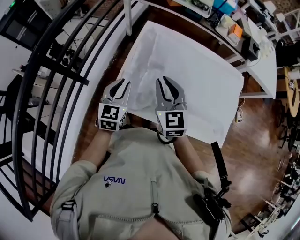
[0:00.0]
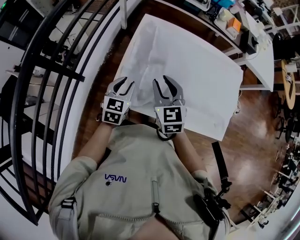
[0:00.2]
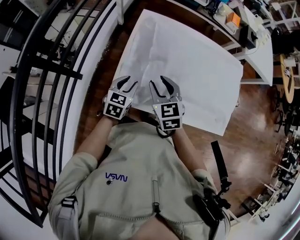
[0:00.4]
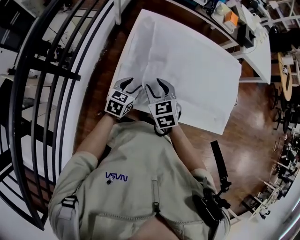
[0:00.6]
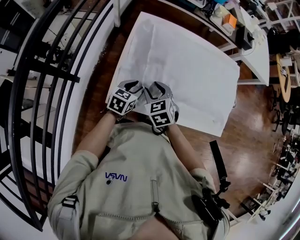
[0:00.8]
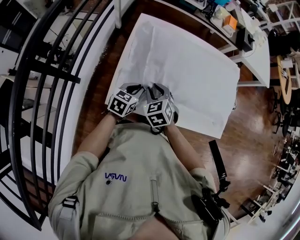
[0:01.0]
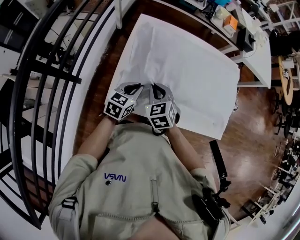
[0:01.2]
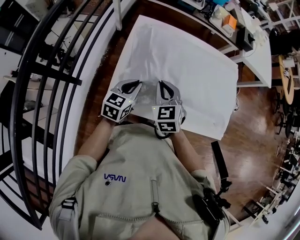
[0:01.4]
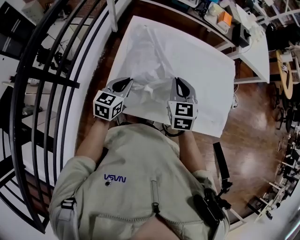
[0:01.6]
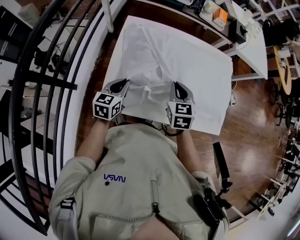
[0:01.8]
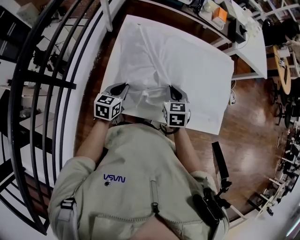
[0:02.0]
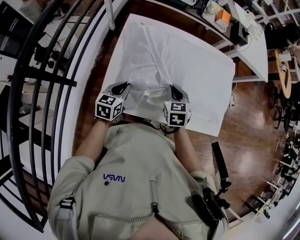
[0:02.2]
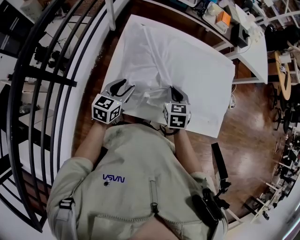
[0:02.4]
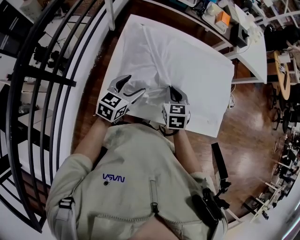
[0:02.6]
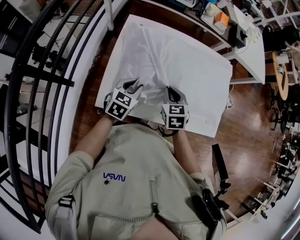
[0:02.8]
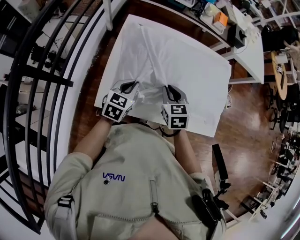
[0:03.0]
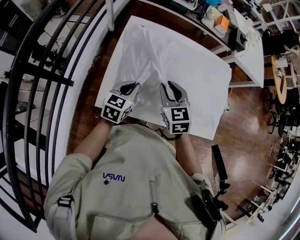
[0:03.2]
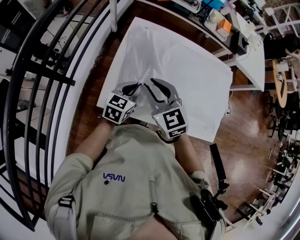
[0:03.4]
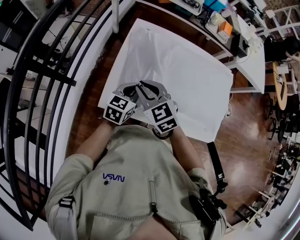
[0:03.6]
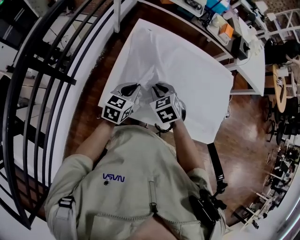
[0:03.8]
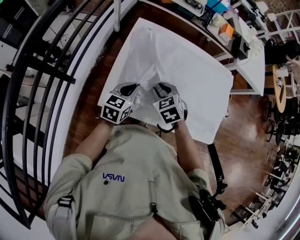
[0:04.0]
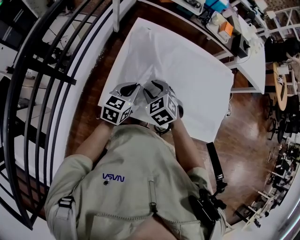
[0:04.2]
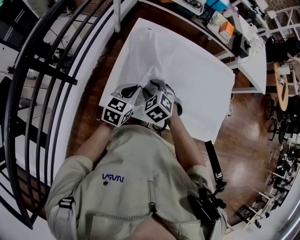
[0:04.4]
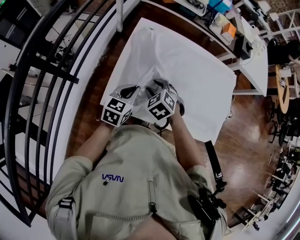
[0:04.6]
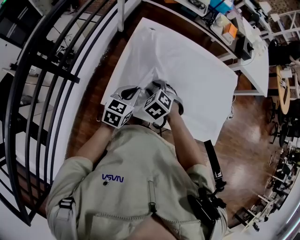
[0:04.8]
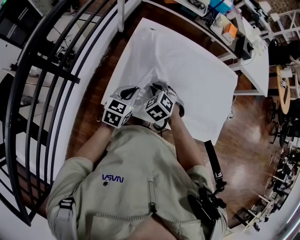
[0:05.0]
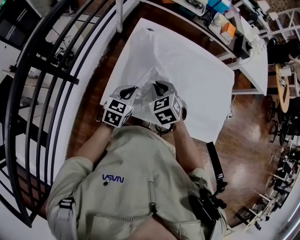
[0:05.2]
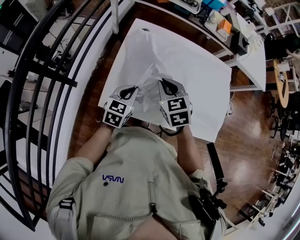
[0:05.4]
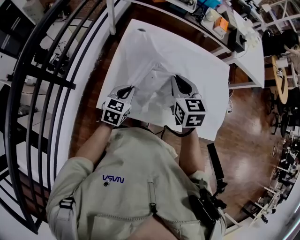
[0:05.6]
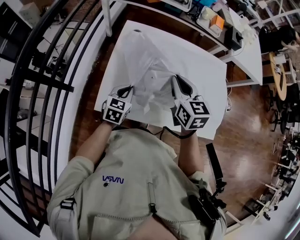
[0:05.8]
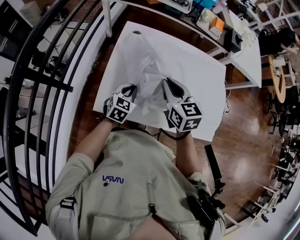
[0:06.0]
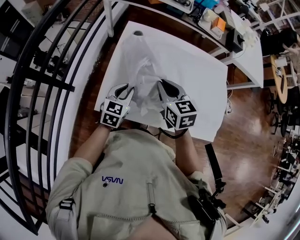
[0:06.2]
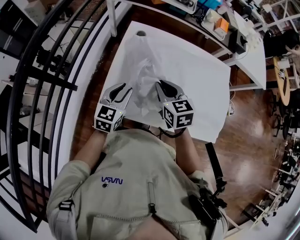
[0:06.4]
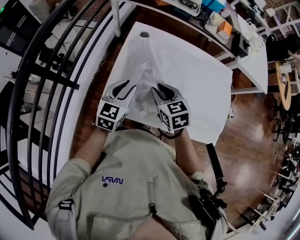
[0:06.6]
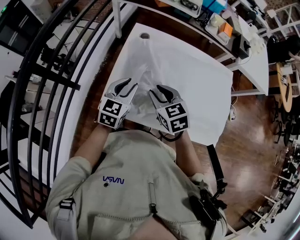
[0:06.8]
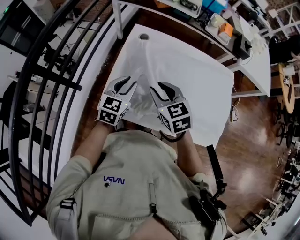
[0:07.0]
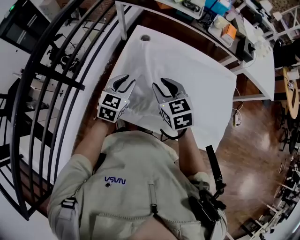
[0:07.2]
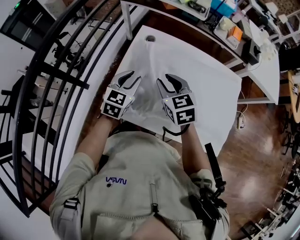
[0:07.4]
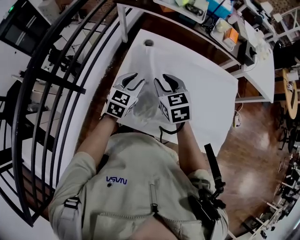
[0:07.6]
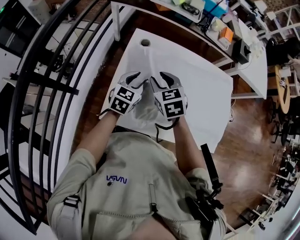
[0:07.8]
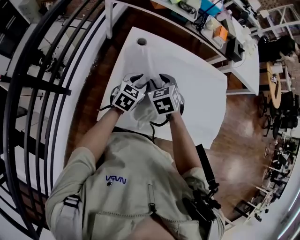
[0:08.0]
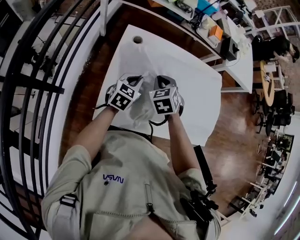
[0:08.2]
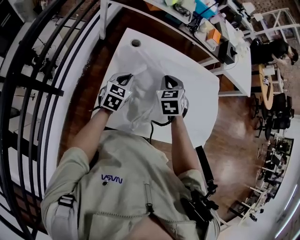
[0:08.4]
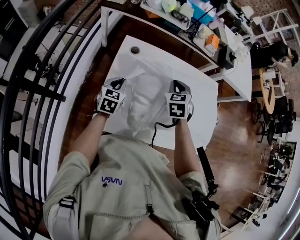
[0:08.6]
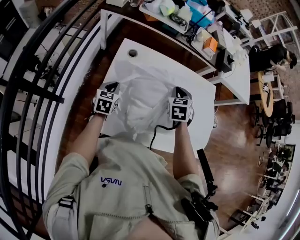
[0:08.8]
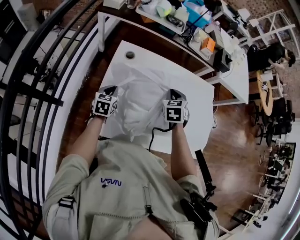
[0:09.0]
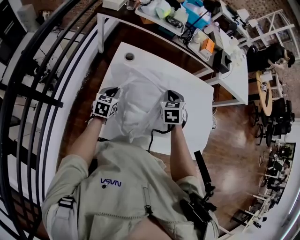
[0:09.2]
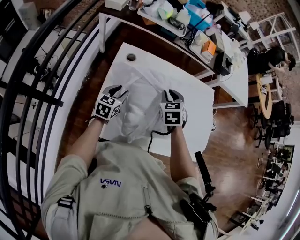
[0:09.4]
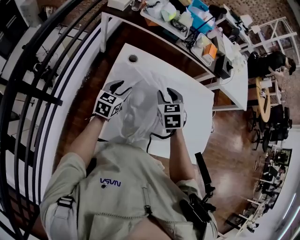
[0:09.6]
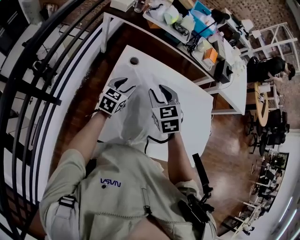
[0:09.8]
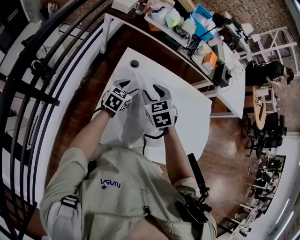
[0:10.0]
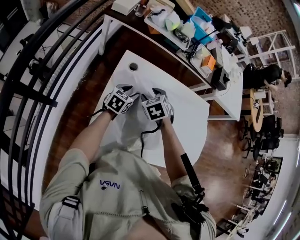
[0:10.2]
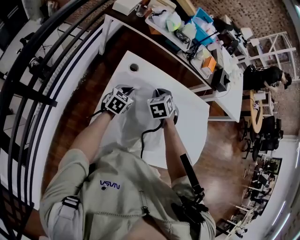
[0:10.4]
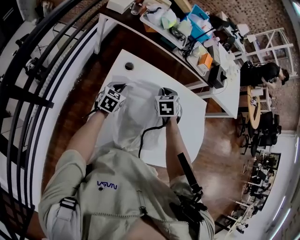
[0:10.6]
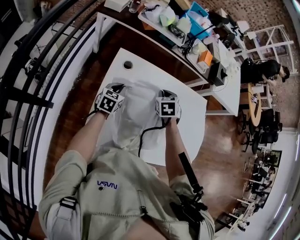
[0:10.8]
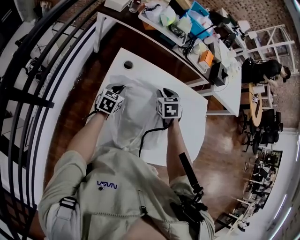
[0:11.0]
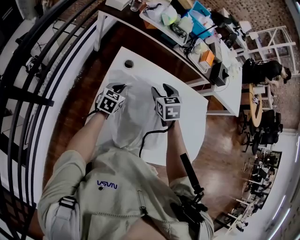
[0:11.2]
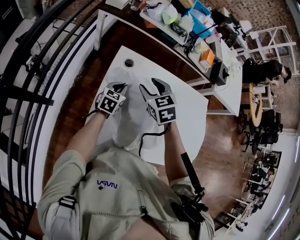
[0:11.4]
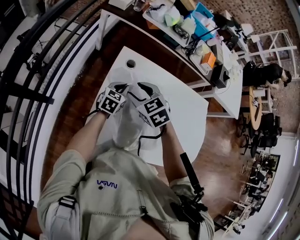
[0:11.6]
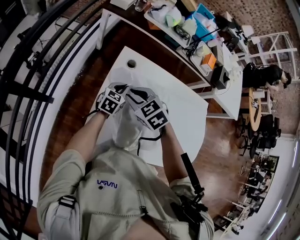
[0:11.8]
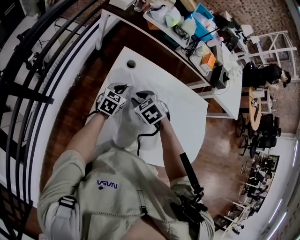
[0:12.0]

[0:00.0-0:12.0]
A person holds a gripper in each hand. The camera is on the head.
0:00.0 to 0:01.6: The left gripper swivels about 20 degrees, and opens, then closes once more. Meanwhile the right gripper moves to the right, some 10 cm, goes downward and returns, approximately 15 cm each way, rotates approximately 20 degrees, and opens, then closes once more.
0:01.6 to 0:03.0: The left gripper goes some 5 cm to the right, and opens, then closes again, while the right gripper goes approximately 5 cm downward.
0:03.0 to 0:04.4: The right gripper moves left and right over about 15 cm, changing direction 2 times, turns by some 40 degrees, and opens up.
0:04.4 to 0:06.0: The right gripper is displaced upward and to the right by roughly 15 cm, tips its fingers upward by roughly 30 degrees, and closes its fingers, while the left gripper moves about 5 cm.
0:06.0 to 0:07.6: The left gripper shifts roughly 10 cm upward and forward, and opens its fingers. Meanwhile the right gripper is displaced forward and to the left by some 10 cm, and opens its fingers.
0:07.6 to 0:09.0: The right gripper moves to the right and forward, about 15 cm, turns by roughly 30 degrees, and closes, while the left gripper is displaced downward and to the left by roughly 10 cm.
0:09.0 to 0:10.4: The right gripper is displaced to the left by some 10 cm, and opens, then closes once more. The left gripper moves forward, about 10 cm, and opens, then closes again.
0:10.4 to 0:12.0: The right gripper moves about 5 cm upward and comes back, changes its angle by about 30 degrees, and opens up.

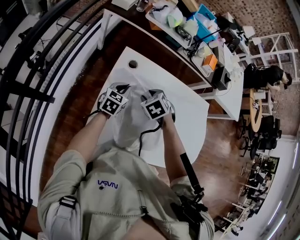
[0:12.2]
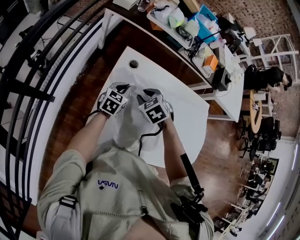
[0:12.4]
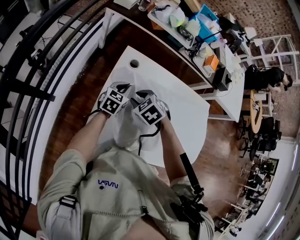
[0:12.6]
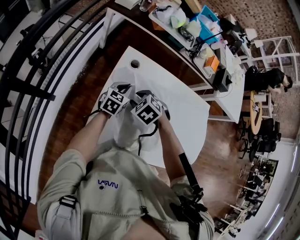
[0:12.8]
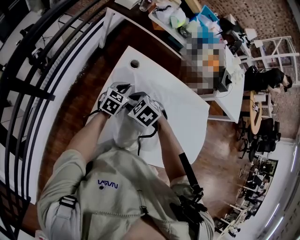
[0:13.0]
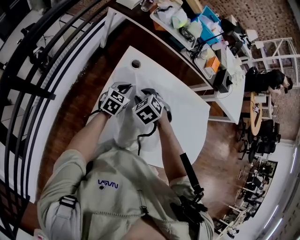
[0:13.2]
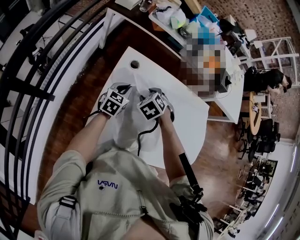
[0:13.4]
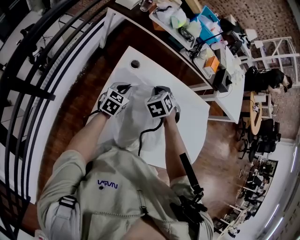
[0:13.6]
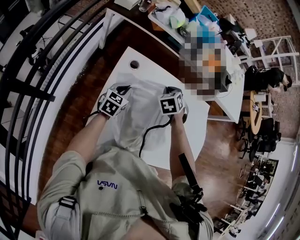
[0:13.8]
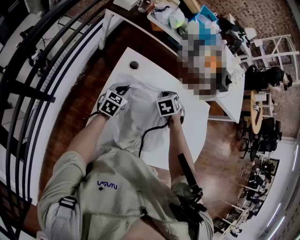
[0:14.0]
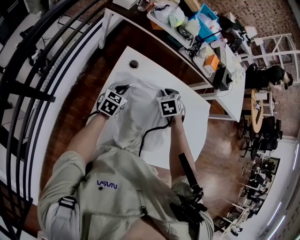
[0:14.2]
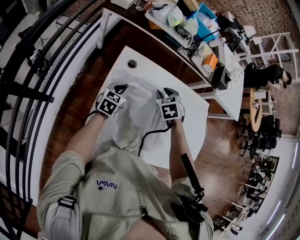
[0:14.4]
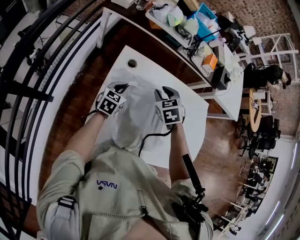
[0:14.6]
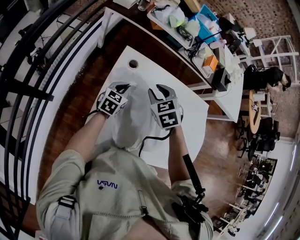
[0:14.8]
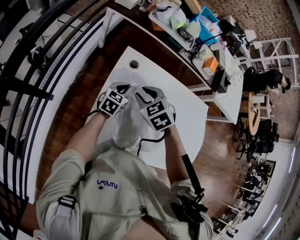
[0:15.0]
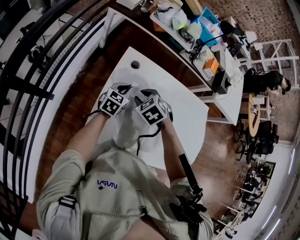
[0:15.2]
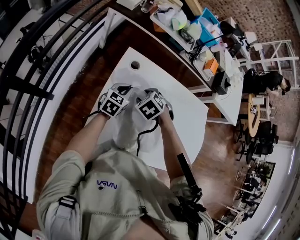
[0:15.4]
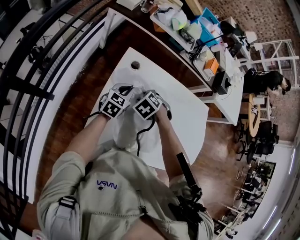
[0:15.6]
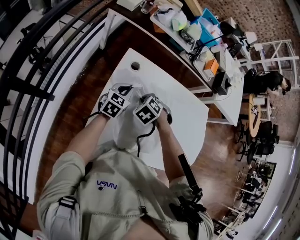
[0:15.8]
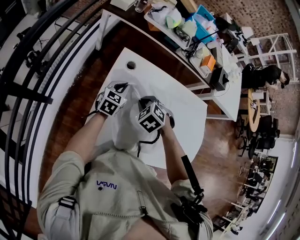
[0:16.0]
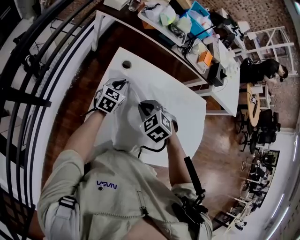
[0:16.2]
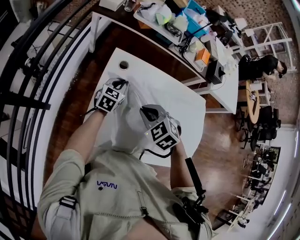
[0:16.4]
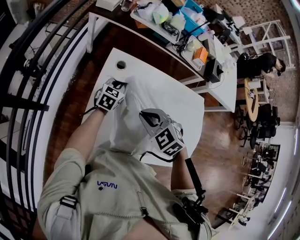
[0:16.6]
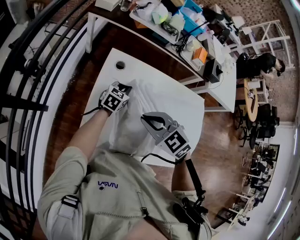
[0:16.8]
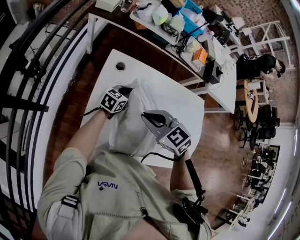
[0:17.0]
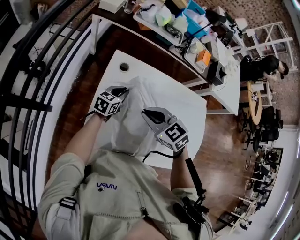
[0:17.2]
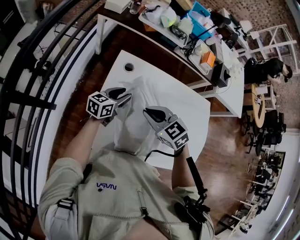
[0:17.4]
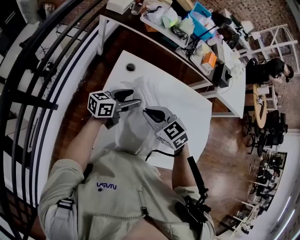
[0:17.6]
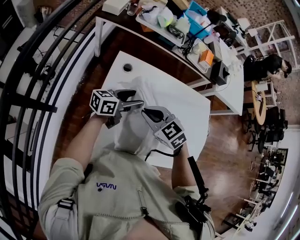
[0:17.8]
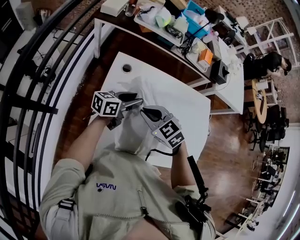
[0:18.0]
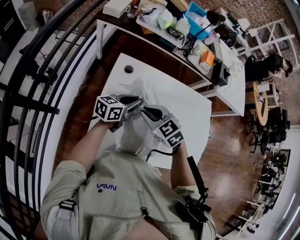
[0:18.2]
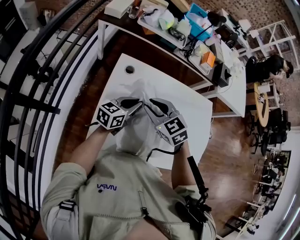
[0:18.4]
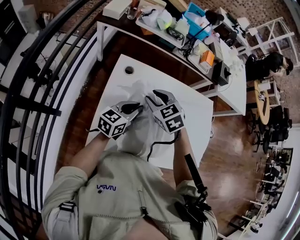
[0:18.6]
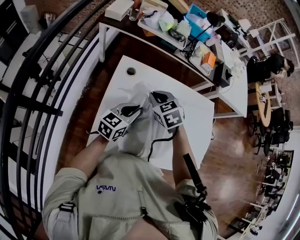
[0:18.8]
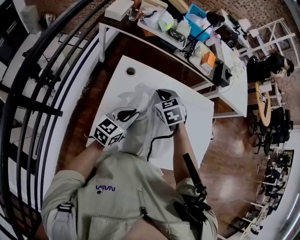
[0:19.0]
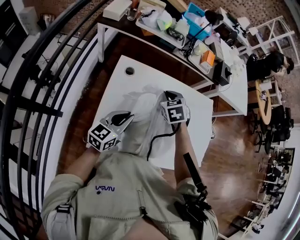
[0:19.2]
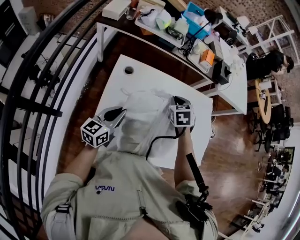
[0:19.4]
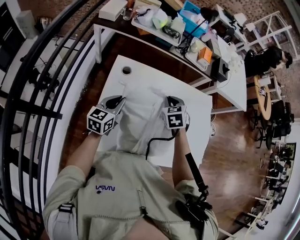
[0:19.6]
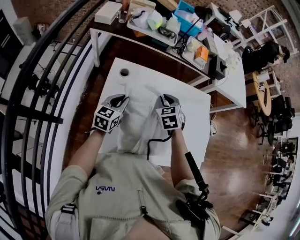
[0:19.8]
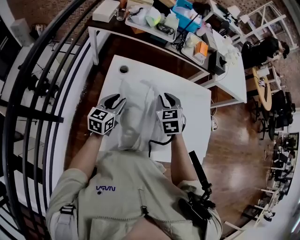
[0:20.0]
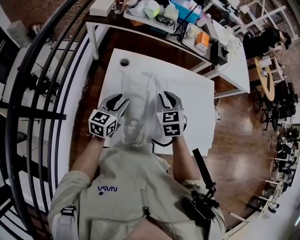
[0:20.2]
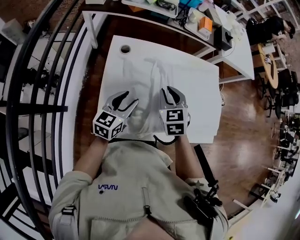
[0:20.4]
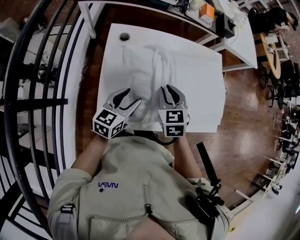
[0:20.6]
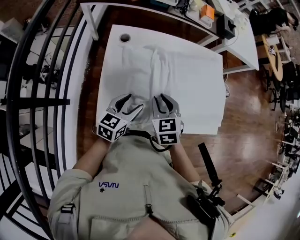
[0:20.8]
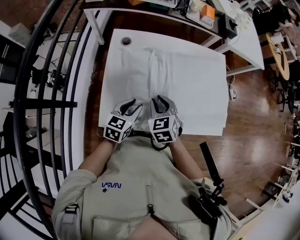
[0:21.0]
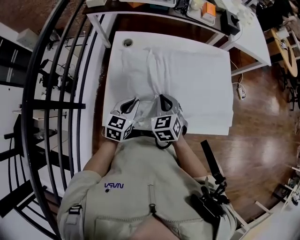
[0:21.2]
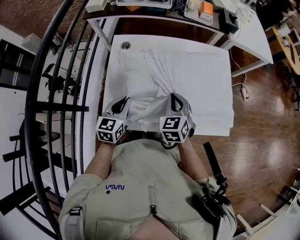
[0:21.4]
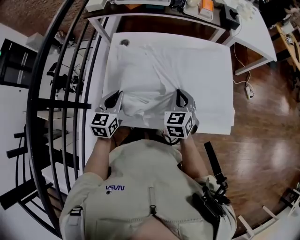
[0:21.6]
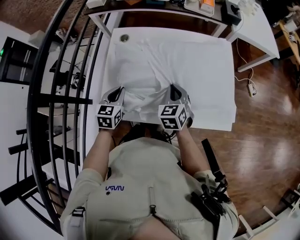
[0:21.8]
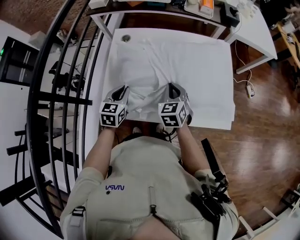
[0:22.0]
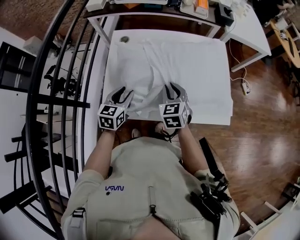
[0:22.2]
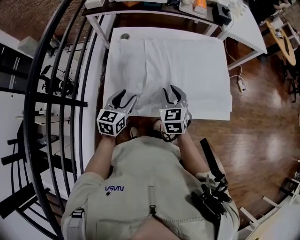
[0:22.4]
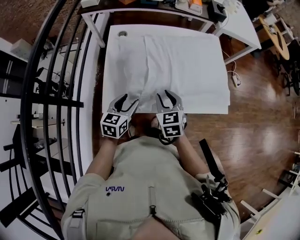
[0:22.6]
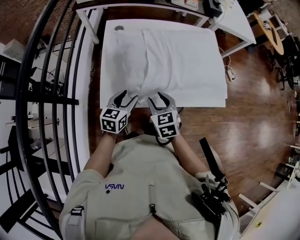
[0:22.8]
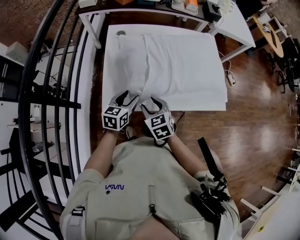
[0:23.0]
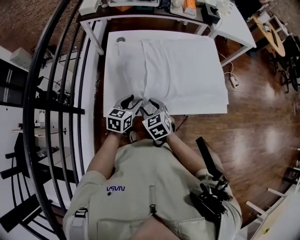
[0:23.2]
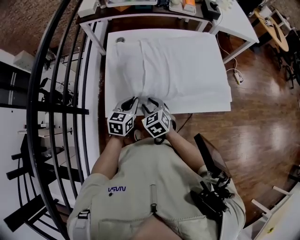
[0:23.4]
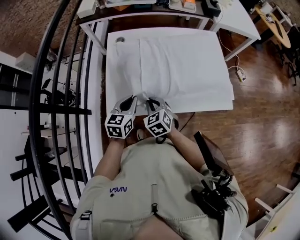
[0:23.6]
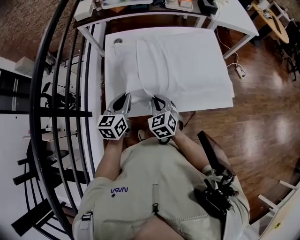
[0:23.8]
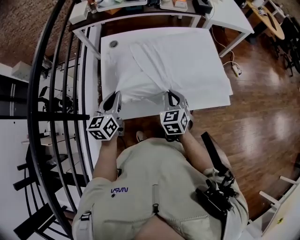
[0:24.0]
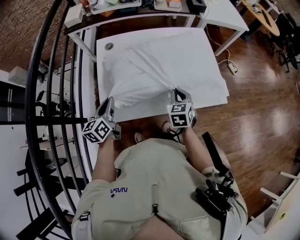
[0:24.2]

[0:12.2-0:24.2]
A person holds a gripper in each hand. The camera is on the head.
0:12.2 to 0:13.8: The right gripper changes place by approximately 10 cm, and closes.
0:13.8 to 0:15.2: The right gripper is displaced to the left and backward by roughly 15 cm, turns by roughly 30 degrees, and opens up.
0:15.2 to 0:16.6: The right gripper shifts by some 15 cm, and closes its fingers.
0:16.6 to 0:18.2: The left gripper shifts approximately 10 cm backward and upward, turns by approximately 30 degrees, and opens, then closes once more.
0:18.2 to 0:19.8: The right gripper heads forward and to the right, covering approximately 15 cm, and turns by about 40 degrees; the left gripper moves some 10 cm backward and comes back, and changes its angle by some 30 degrees.
0:19.8 to 0:21.2: The left gripper goes roughly 15 cm backward and to the right, and opens, then closes once more. The right gripper travels backward by about 20 cm.
0:21.2 to 0:22.6: Both grippers travel together backward, some 10 cm. The right gripper opens its fingers. Meanwhile the left gripper opens up.
0:22.6 to 0:24.2: The right gripper heads to the right, covering about 10 cm, and closes; the left gripper heads to the left, covering about 10 cm, swivels roughly 20 degrees, and closes its fingers.
